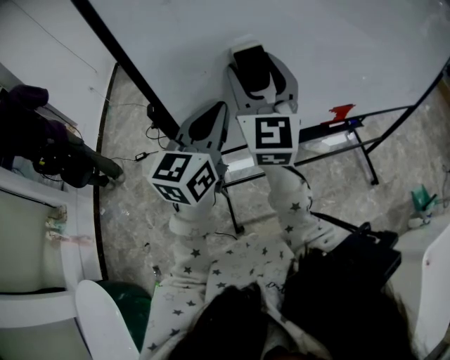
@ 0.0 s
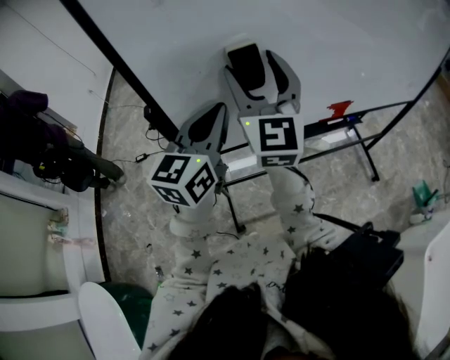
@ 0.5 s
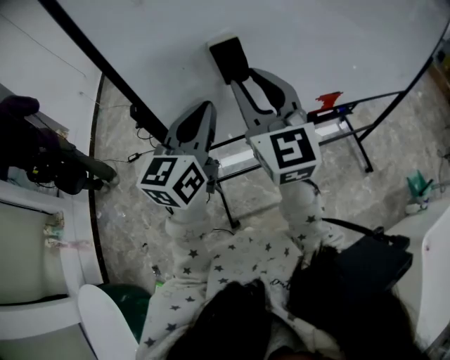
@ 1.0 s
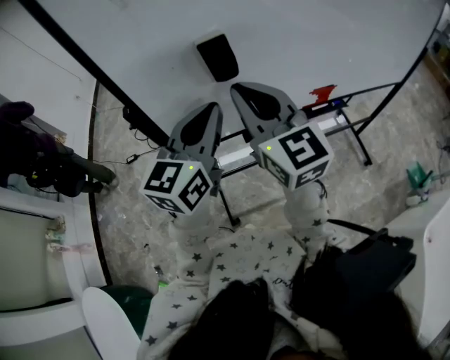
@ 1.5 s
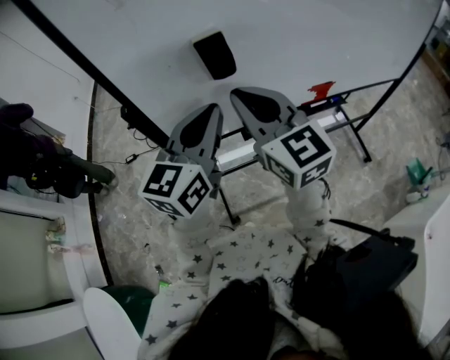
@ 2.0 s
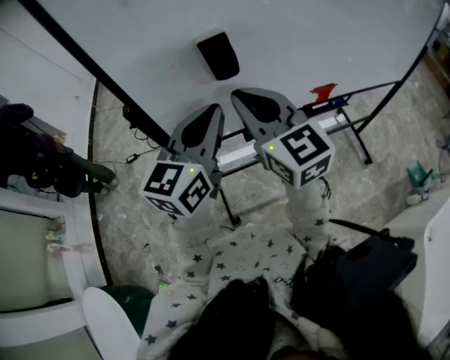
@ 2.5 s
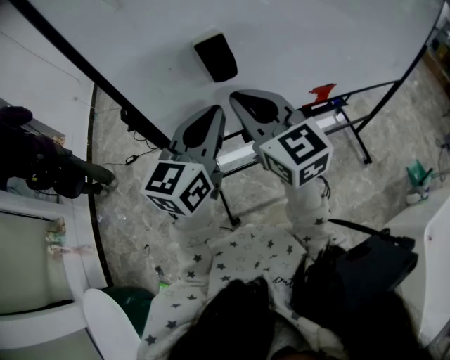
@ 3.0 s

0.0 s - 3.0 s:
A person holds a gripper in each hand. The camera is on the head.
0.0 s - 1.5 s: The right gripper moves backward, approximately 5 cm, turns by some 20 degrees, and closes.
1.5 s - 3.0 s: The grippers stay close to where they were, moving slightly.

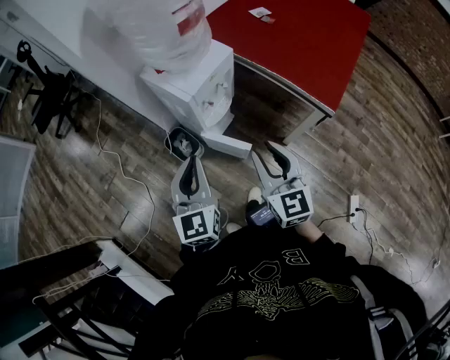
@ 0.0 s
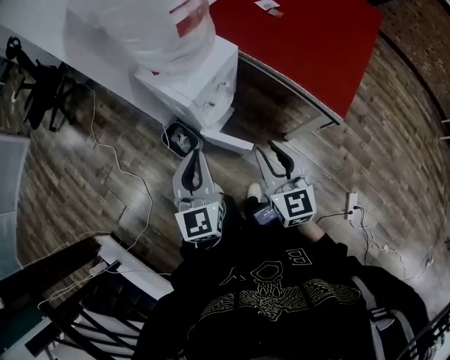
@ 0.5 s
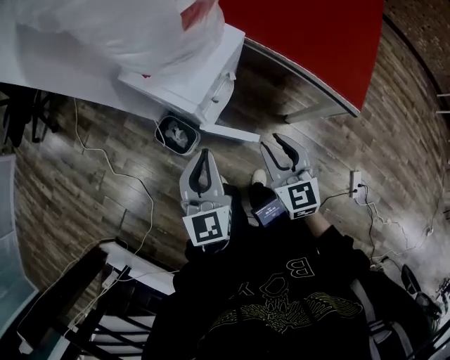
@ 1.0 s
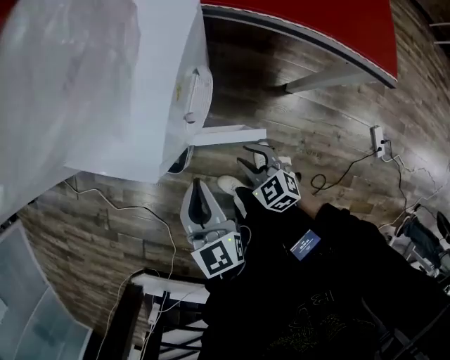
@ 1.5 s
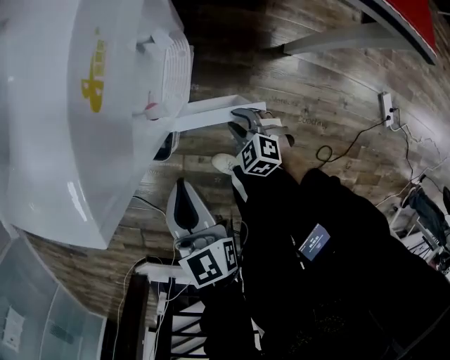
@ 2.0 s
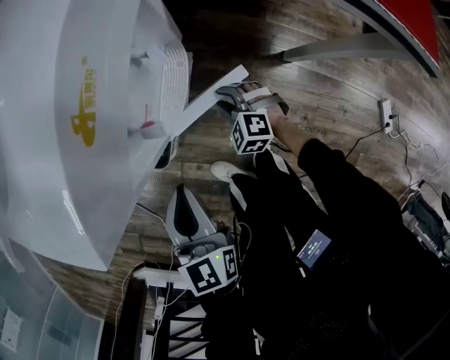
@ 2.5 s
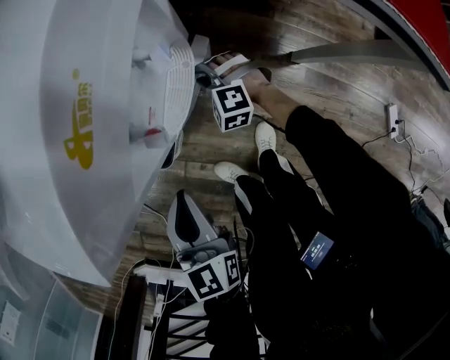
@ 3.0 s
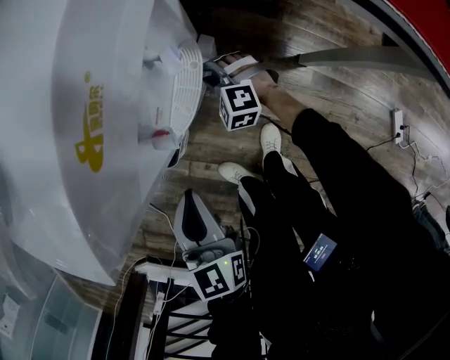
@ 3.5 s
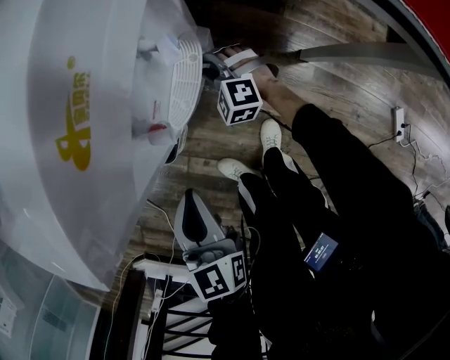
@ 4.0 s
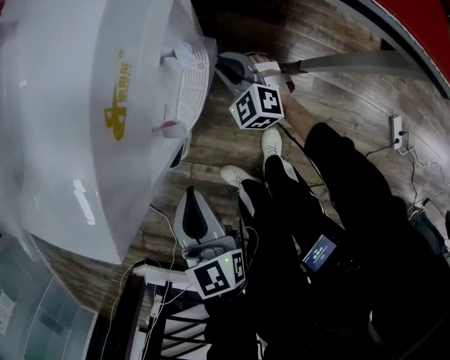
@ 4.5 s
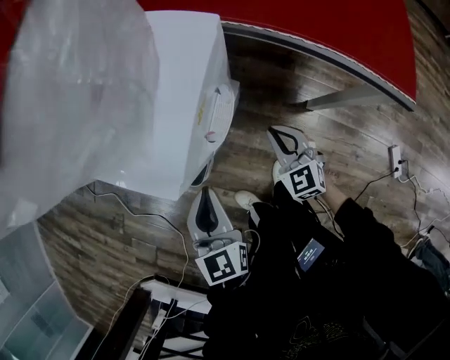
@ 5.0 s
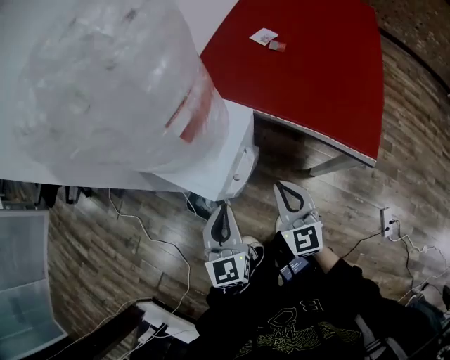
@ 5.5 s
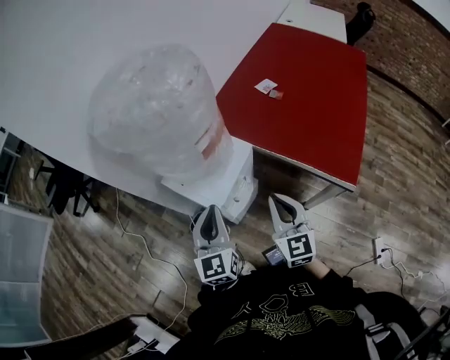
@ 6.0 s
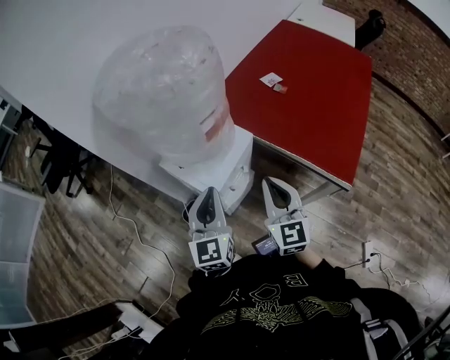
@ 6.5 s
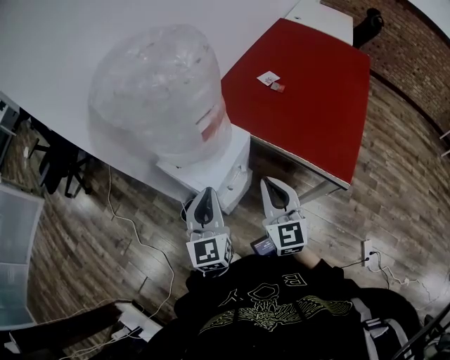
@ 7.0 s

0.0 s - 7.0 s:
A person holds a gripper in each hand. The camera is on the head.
0.0 s - 2.0 s: The right gripper travels downward by some 60 cm, and tilts its fingers roughly 50 degrees downward; the left gripper goes approximately 40 cm downward and forward, and turns by some 30 degrees.
2.0 s - 3.5 s: The right gripper travels forward by approximately 20 cm, and changes its angle by approximately 30 degrees.
3.5 s - 5.0 s: The right gripper heads upward and backward, covering roughly 25 cm, changes its angle by roughly 50 degrees, and closes its fingers, while the left gripper is displaced upward by about 10 cm.
5.0 s - 7.0 s: The two grippers go some 35 cm upward. The right gripper rotates approximately 30 degrees.

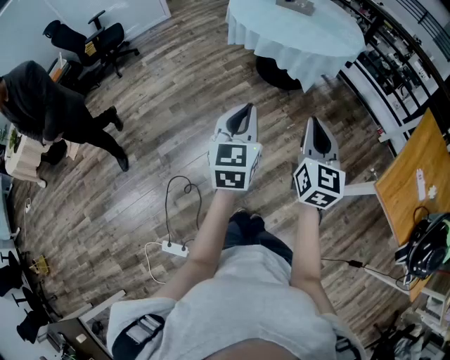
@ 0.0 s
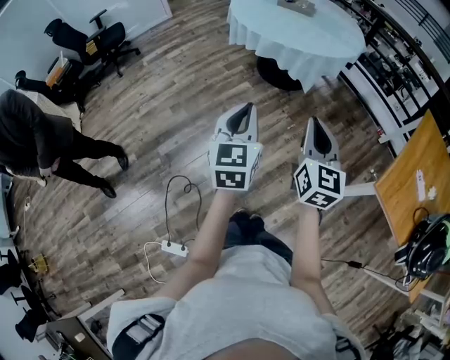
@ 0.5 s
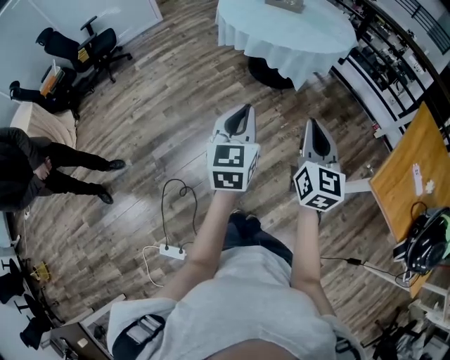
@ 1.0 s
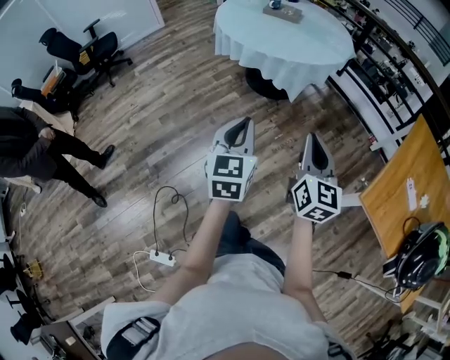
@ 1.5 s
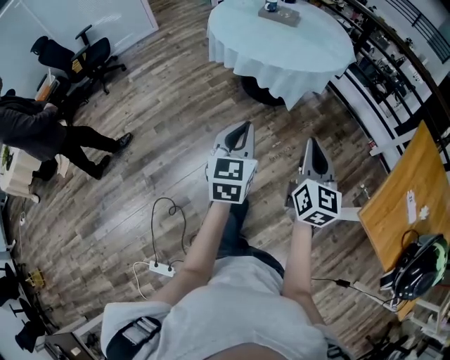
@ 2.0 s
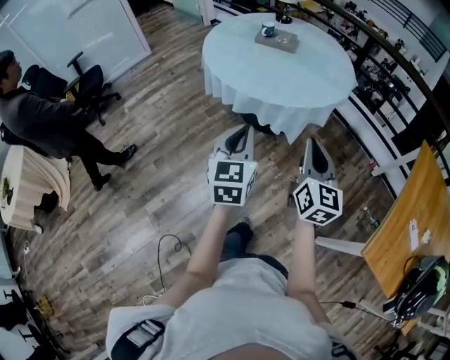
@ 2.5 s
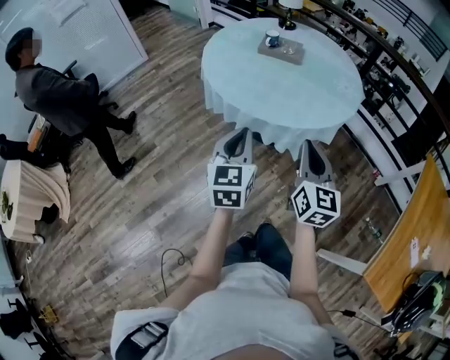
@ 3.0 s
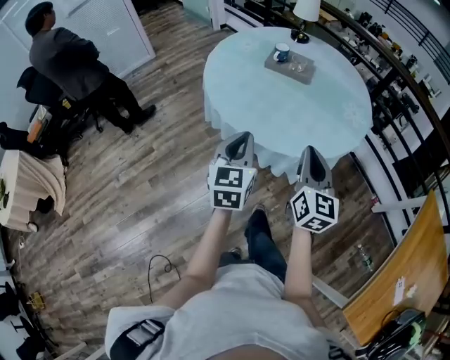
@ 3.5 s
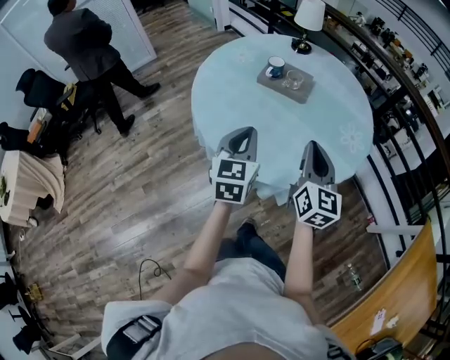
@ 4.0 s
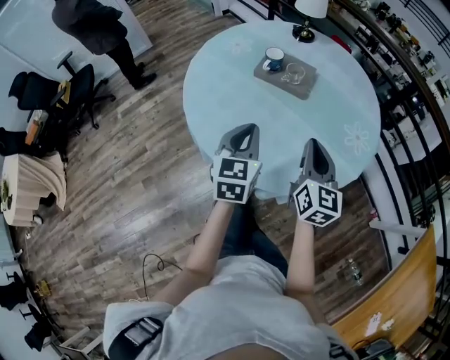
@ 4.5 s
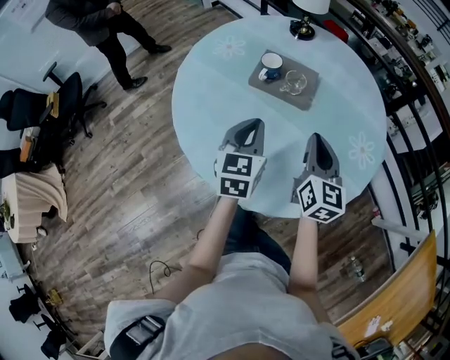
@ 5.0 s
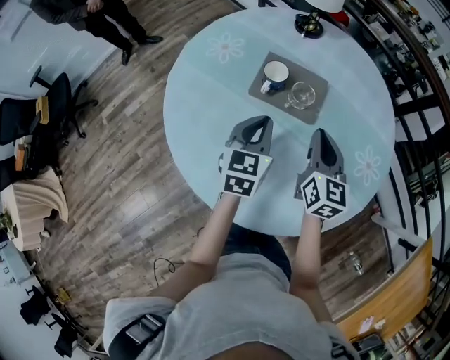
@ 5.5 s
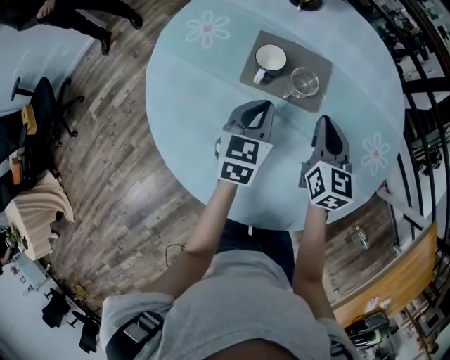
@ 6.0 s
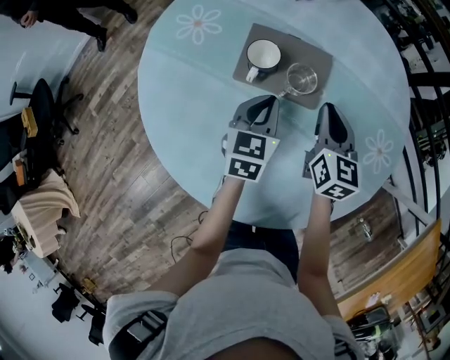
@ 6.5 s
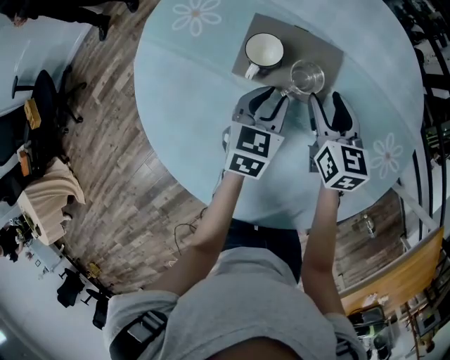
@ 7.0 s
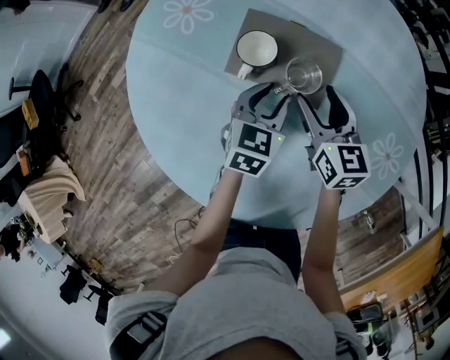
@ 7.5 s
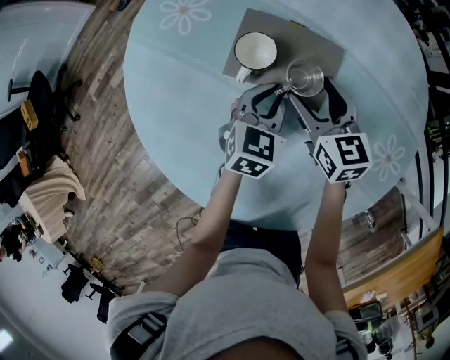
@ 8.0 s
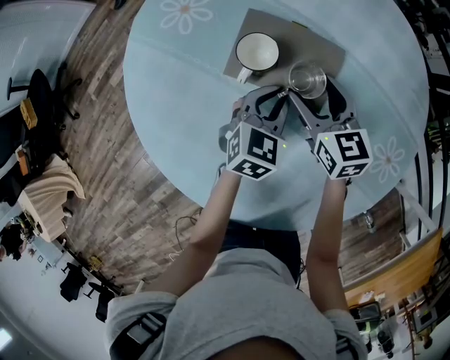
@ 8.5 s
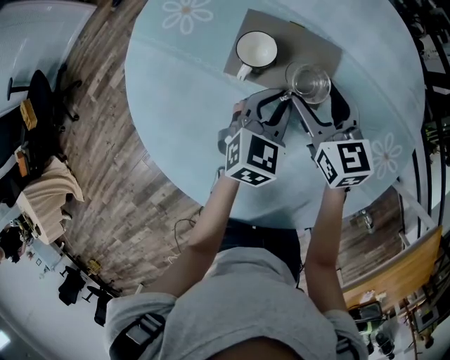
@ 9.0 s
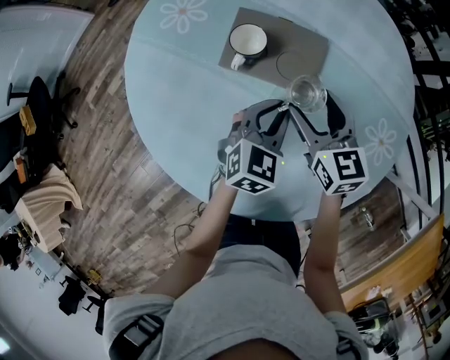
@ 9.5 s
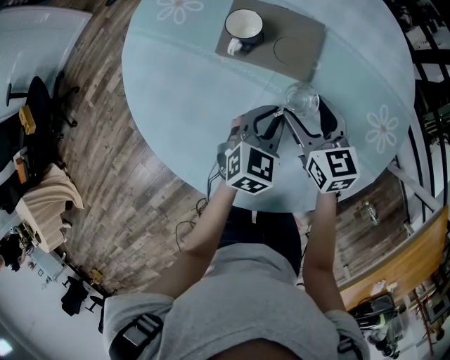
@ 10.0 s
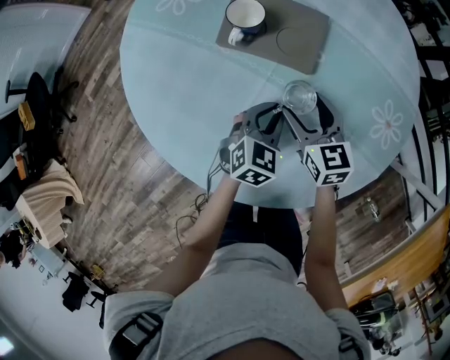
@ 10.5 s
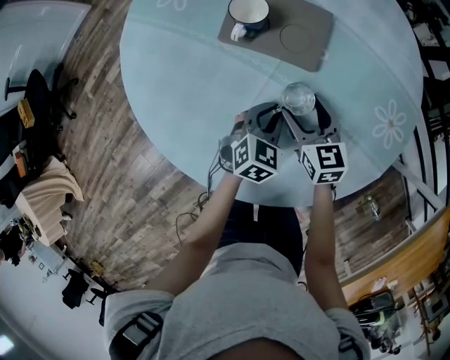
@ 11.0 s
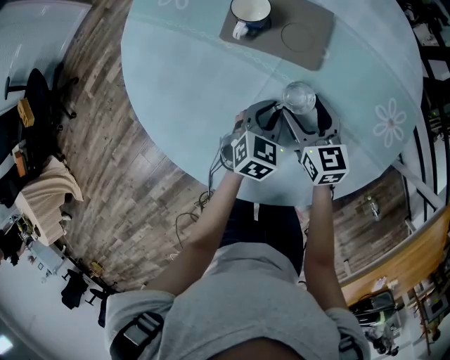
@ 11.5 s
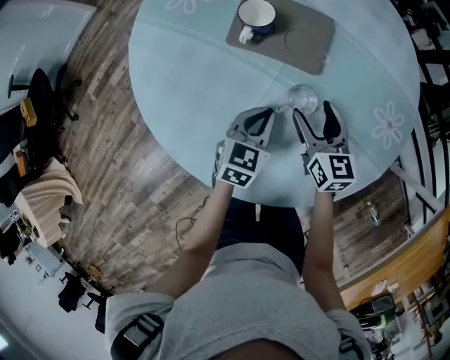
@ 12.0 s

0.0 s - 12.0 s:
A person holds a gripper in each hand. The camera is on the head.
0.0 s - 2.0 s: Both grippers move forward and to the right, roughly 15 cm.
2.0 s - 4.0 s: The two grippers travel together, forward, roughly 60 cm.
4.0 s - 6.0 s: Both grippers move forward and downward, approximately 35 cm. The left gripper turns by about 20 degrees.
6.0 s - 8.0 s: The left gripper moves downward, to the right and forward, about 10 cm, and opens and closes again. The right gripper goes approximately 10 cm forward and downward, swivels some 30 degrees, and opens up.
8.0 s - 10.0 s: Both grippers travel together backward, some 10 cm.
10.0 s - 12.0 s: The left gripper changes place by roughly 5 cm.

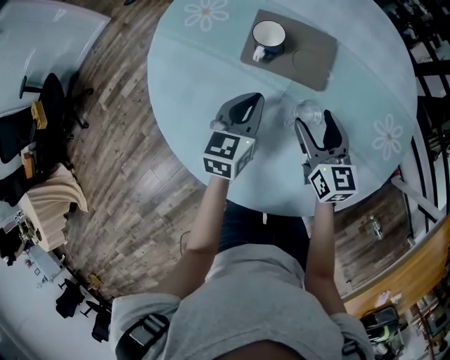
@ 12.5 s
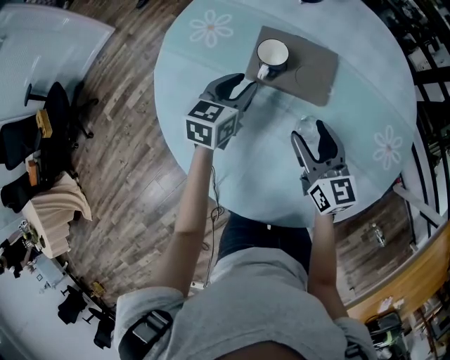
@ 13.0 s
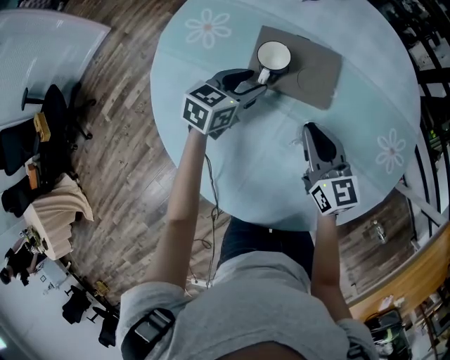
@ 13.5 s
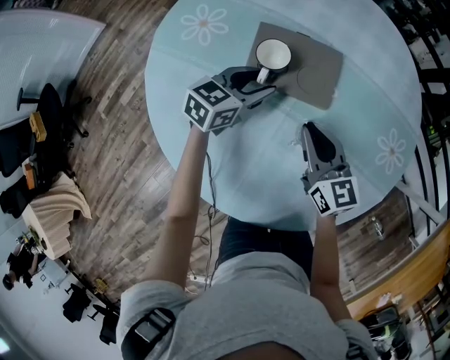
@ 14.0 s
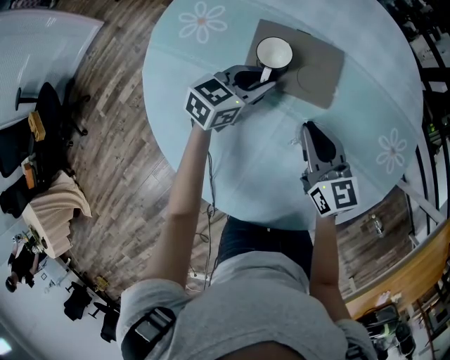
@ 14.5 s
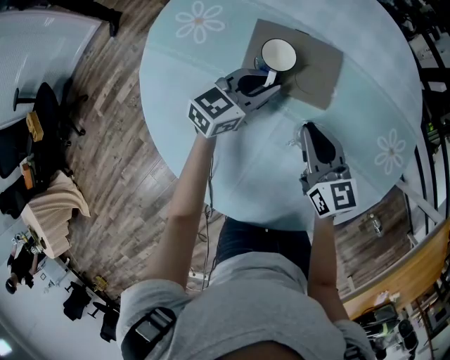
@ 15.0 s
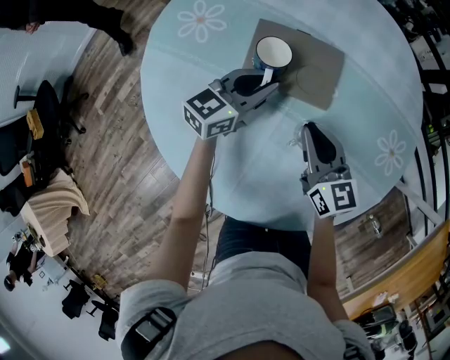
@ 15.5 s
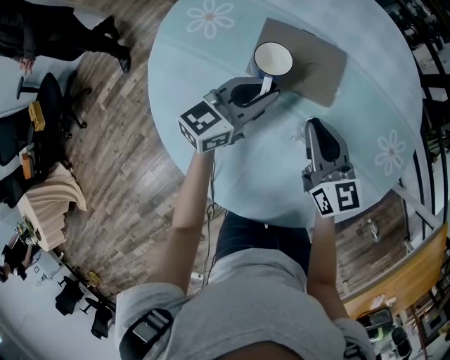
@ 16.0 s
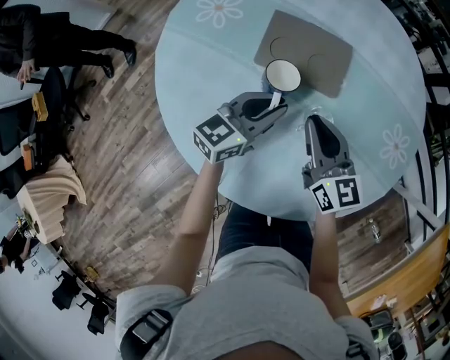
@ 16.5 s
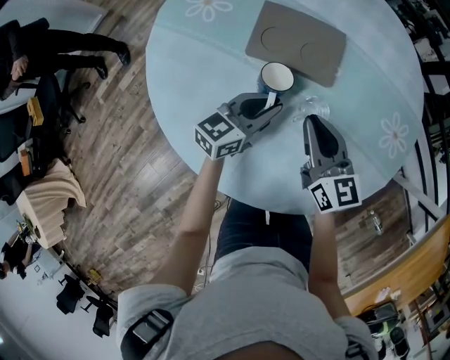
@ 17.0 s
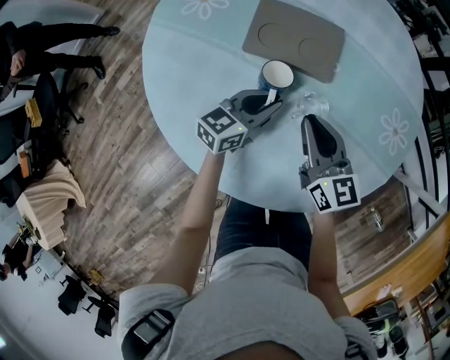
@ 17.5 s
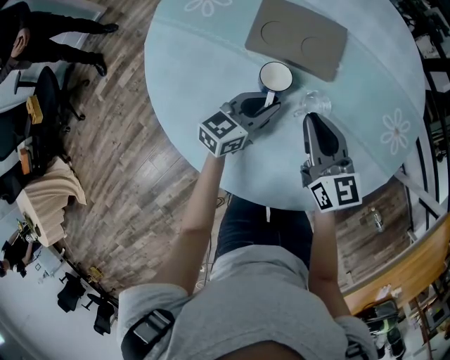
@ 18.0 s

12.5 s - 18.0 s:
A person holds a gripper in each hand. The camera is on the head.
12.5 s - 14.5 s: The left gripper goes approximately 10 cm forward, turns by approximately 30 degrees, and opens, then closes again. The right gripper changes place by about 5 cm, and closes up.
14.5 s - 16.0 s: The left gripper is displaced upward by about 5 cm.
16.0 s - 18.0 s: The left gripper is displaced downward and backward by approximately 15 cm. The right gripper goes approximately 5 cm backward.
